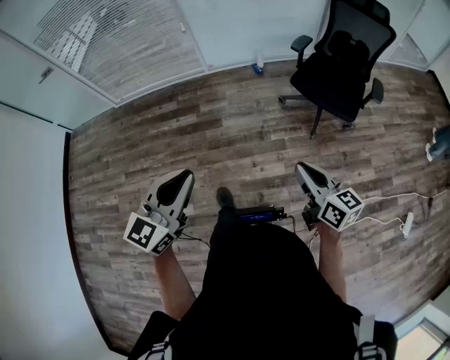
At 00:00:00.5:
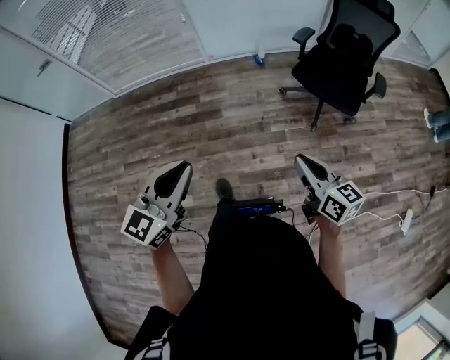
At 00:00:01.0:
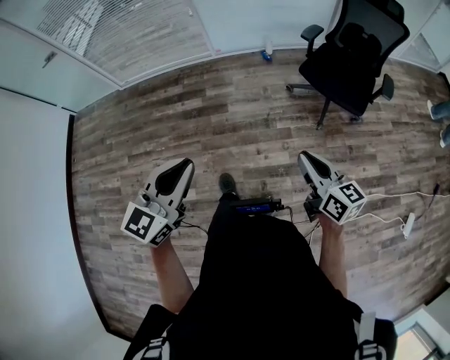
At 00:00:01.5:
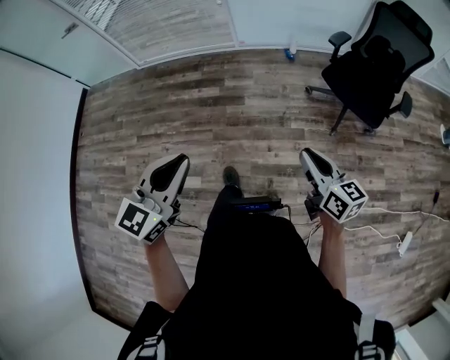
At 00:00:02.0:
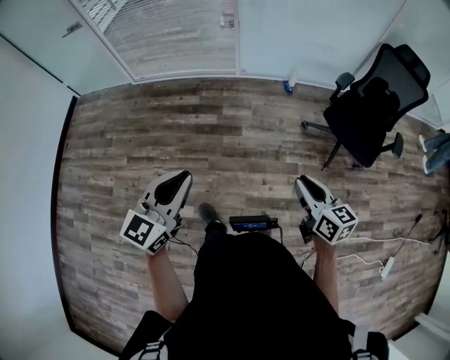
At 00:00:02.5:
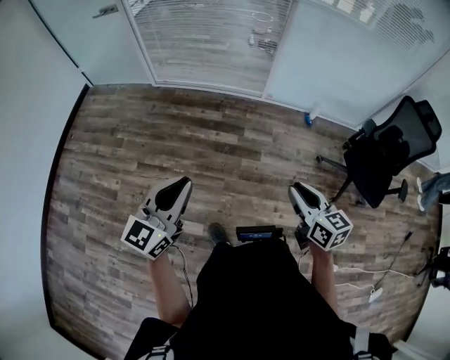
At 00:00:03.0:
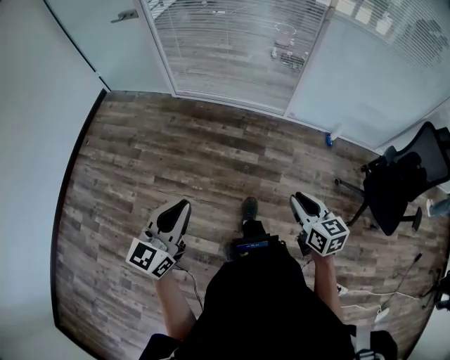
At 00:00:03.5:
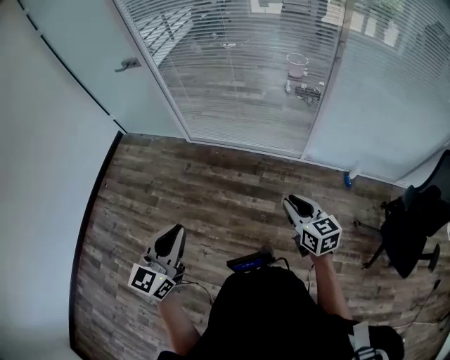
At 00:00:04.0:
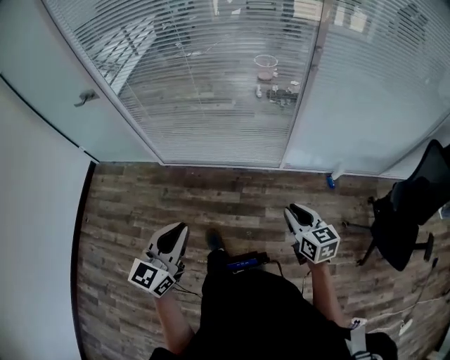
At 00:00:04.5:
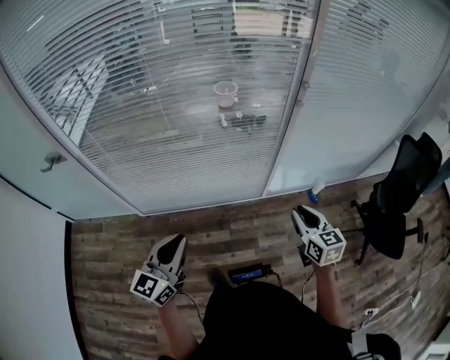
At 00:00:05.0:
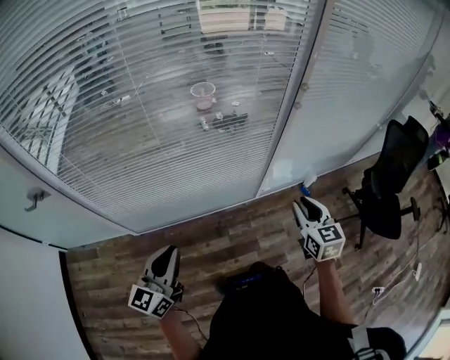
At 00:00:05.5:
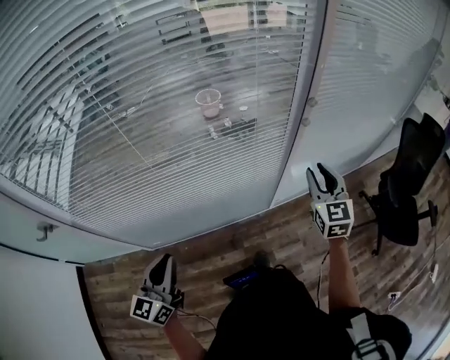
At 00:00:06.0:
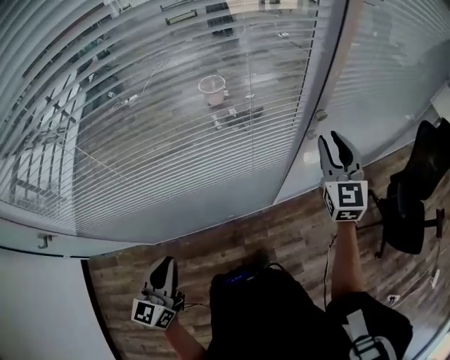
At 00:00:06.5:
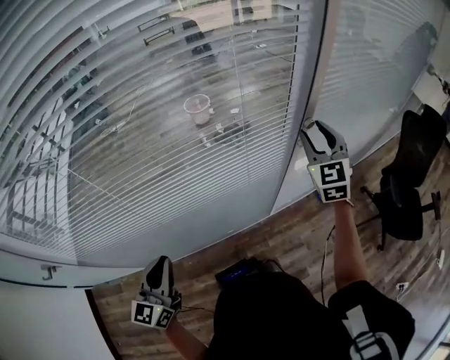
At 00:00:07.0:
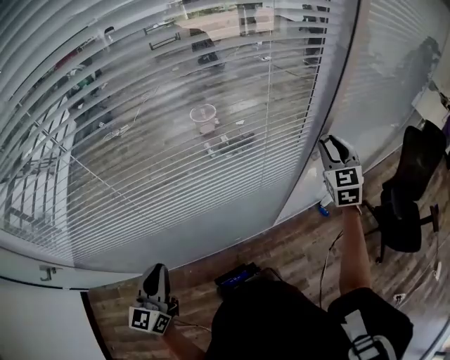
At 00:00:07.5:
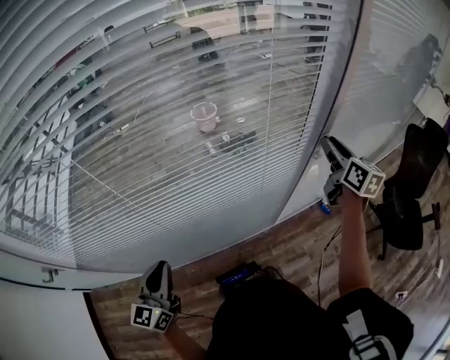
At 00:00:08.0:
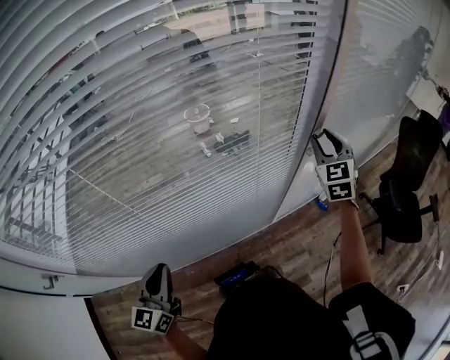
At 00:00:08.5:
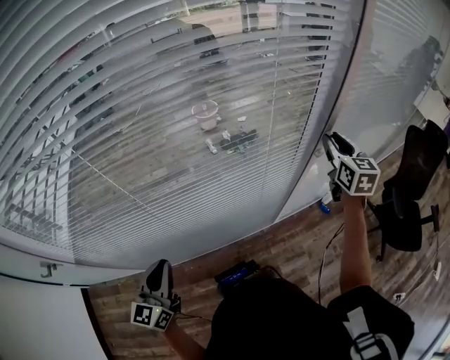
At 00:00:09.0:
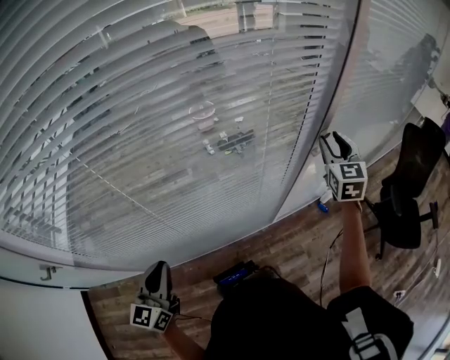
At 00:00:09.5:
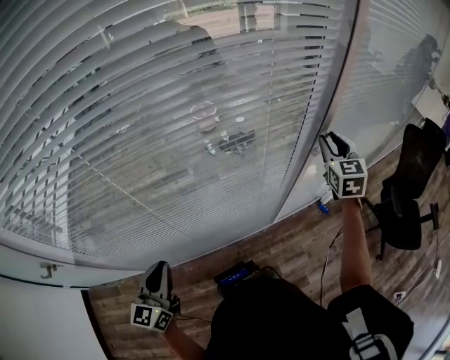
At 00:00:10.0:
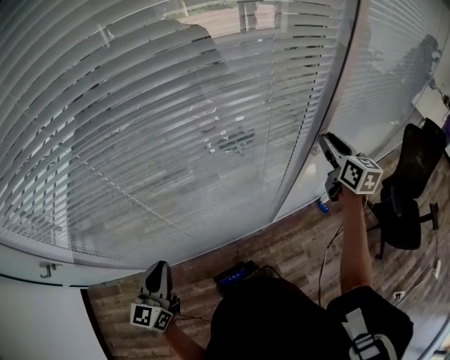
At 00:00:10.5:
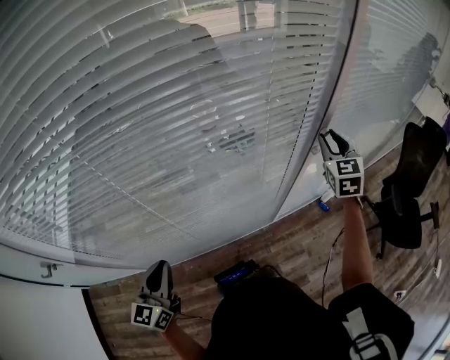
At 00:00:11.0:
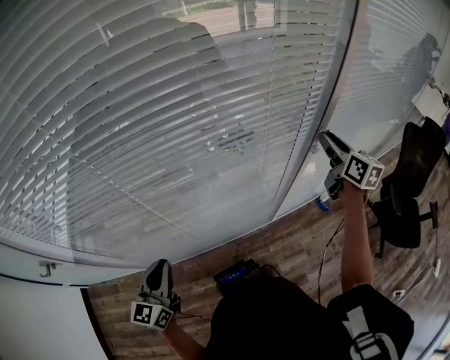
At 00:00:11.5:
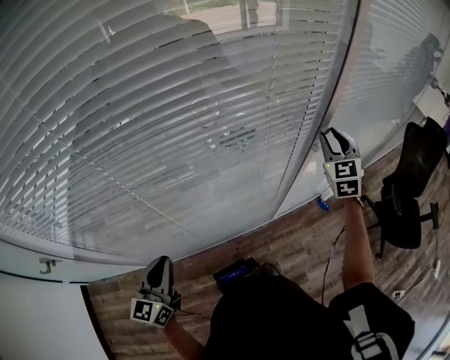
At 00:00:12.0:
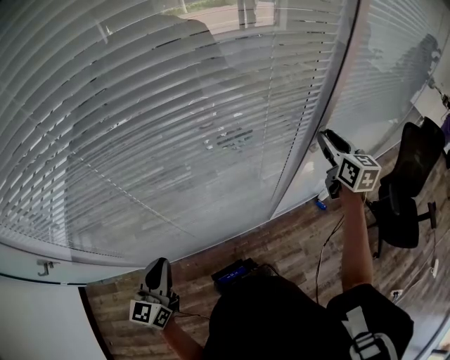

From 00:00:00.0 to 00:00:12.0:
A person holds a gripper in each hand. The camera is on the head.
From 00:00:00.0 to 00:00:02.0: The left gripper moves to the left, about 15 cm, while the right gripper goes about 15 cm to the left and forward.
From 00:00:02.0 to 00:00:04.0: Both grippers are carried forward and to the left, about 50 cm.
From 00:00:04.0 to 00:00:06.0: Both grippers are carried some 40 cm. The right gripper changes its angle by roughly 50 degrees.
From 00:00:06.0 to 00:00:08.0: The right gripper heads forward, covering some 5 cm; the left gripper travels to the left by approximately 10 cm.
From 00:00:08.0 to 00:00:10.0: The right gripper rolls clockwise, seen from behind, by about 40 degrees.

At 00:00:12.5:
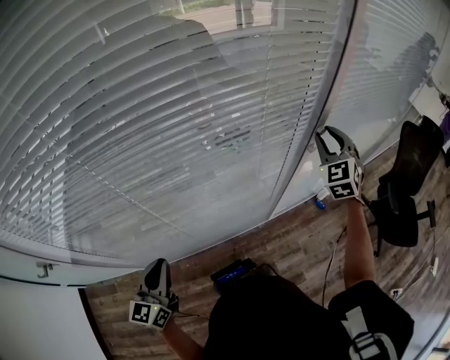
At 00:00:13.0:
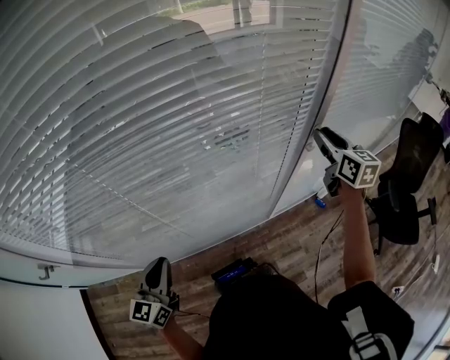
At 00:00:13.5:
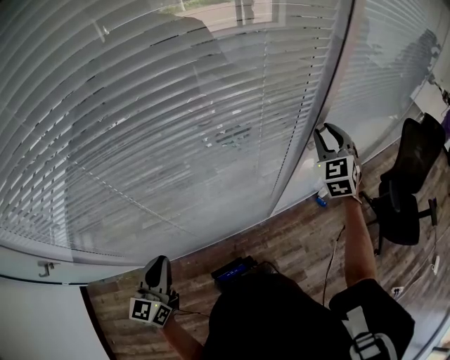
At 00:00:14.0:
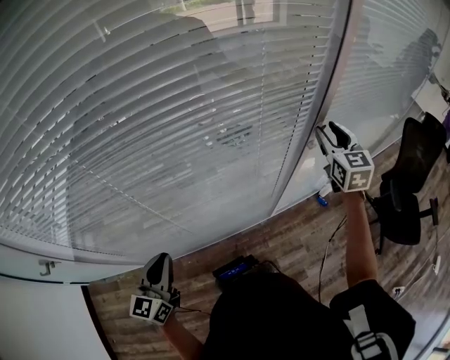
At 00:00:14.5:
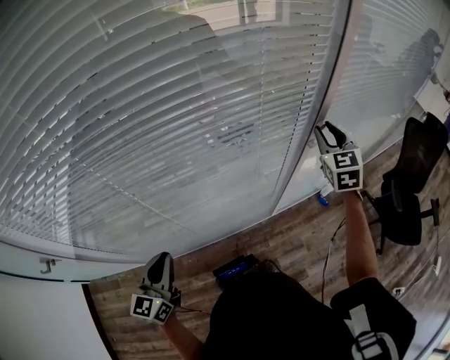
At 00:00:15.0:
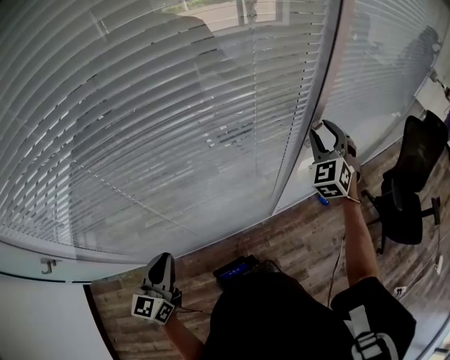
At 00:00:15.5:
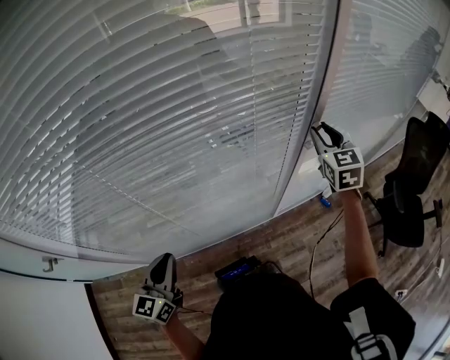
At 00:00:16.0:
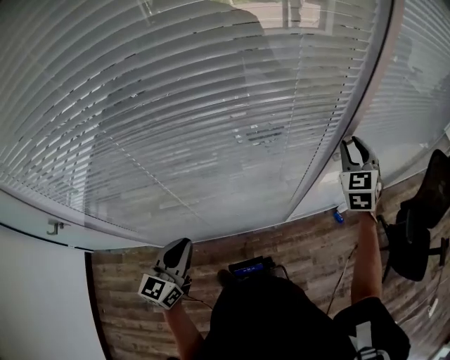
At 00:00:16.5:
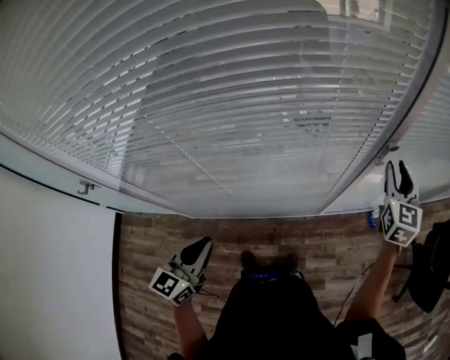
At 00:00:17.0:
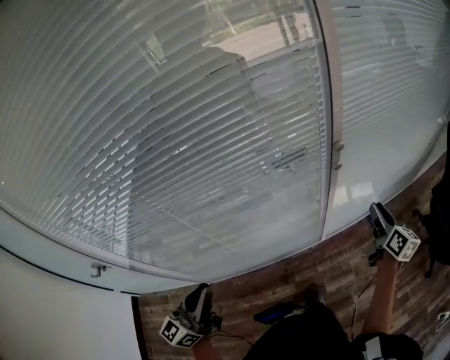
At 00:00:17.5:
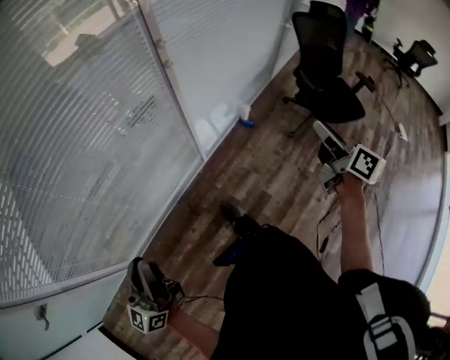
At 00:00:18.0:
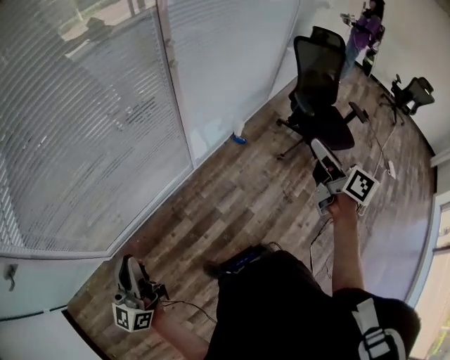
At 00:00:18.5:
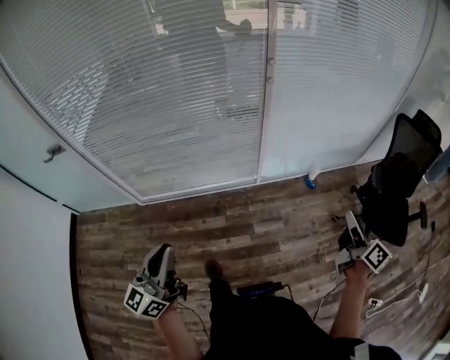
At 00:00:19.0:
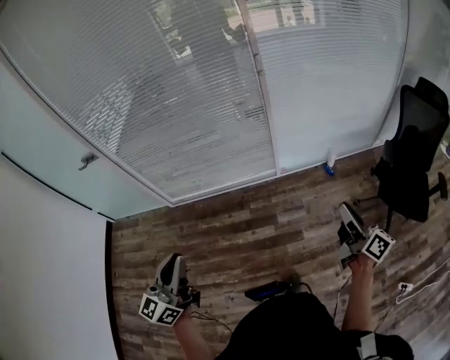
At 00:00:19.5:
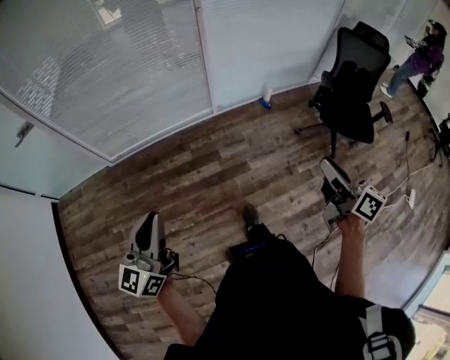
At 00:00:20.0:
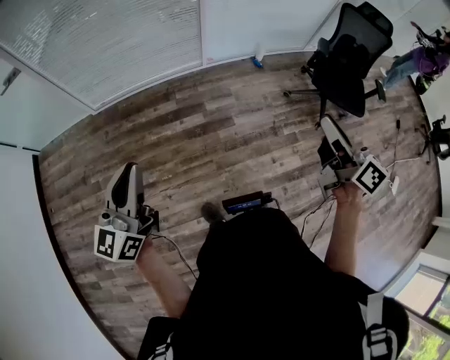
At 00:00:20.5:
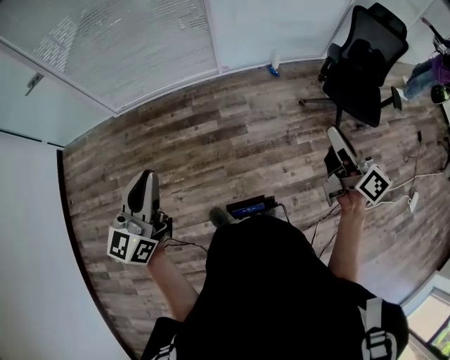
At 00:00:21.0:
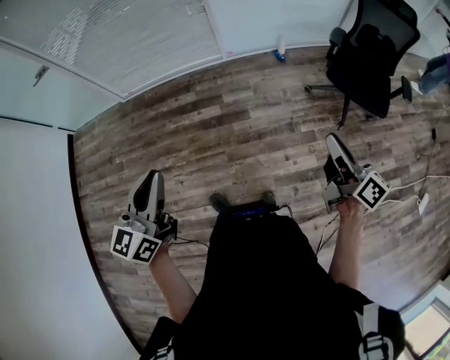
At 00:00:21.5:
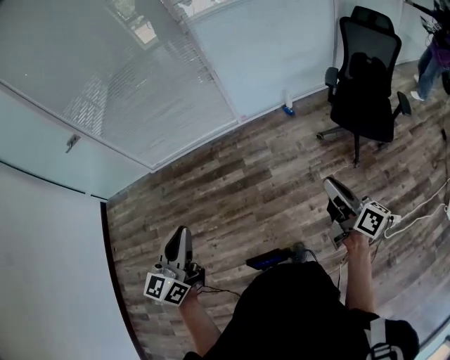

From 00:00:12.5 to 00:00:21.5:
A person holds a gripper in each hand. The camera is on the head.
From 00:00:14.5 to 00:00:17.0: The left gripper goes roughly 15 cm upward, to the right and backward, and swivels approximately 20 degrees. The right gripper travels downward, backward and to the right by roughly 20 cm, and rolls clockwise, seen from behind, by about 60 degrees.
From 00:00:17.0 to 00:00:19.5: The pair of grippers is taken about 70 cm.
From 00:00:19.5 to 00:00:21.5: The left gripper is displaced to the right and backward by approximately 20 cm; the right gripper is displaced to the right, backward and downward by approximately 15 cm.

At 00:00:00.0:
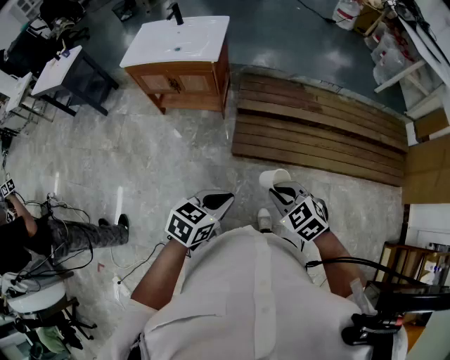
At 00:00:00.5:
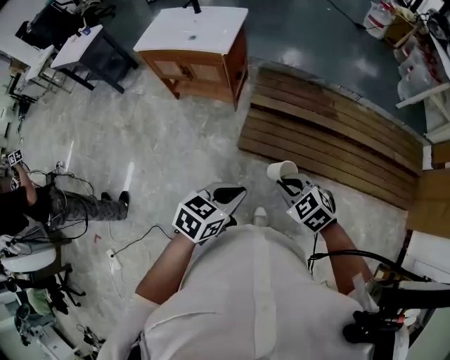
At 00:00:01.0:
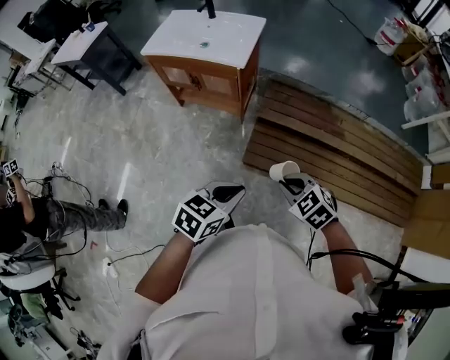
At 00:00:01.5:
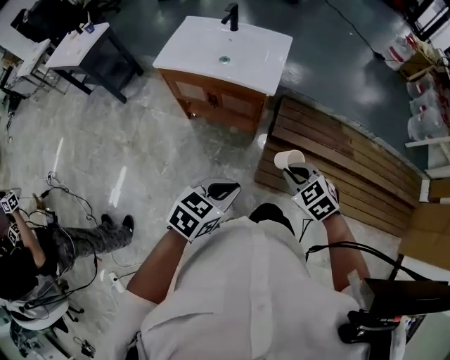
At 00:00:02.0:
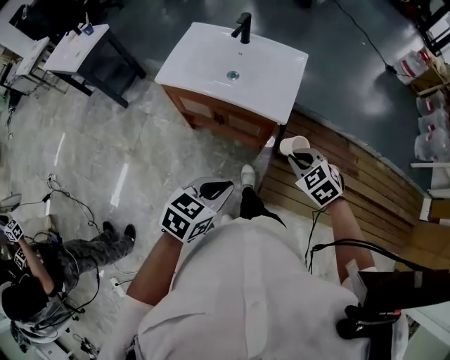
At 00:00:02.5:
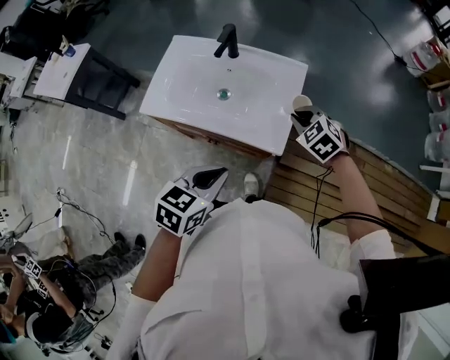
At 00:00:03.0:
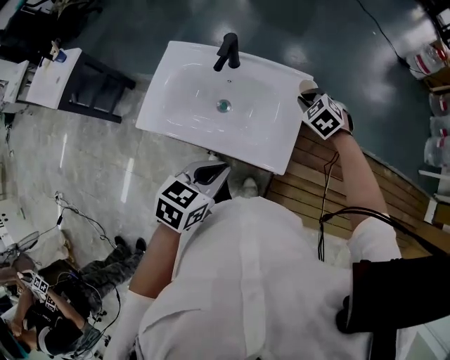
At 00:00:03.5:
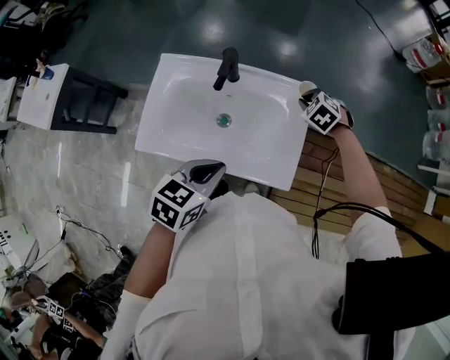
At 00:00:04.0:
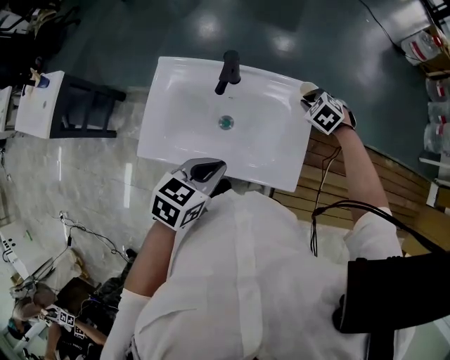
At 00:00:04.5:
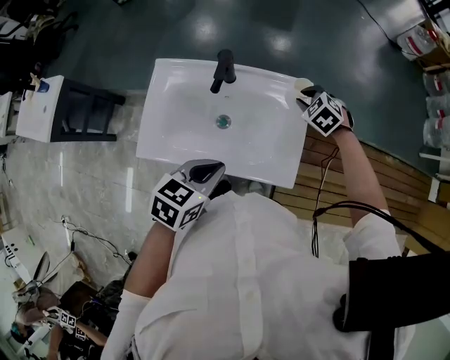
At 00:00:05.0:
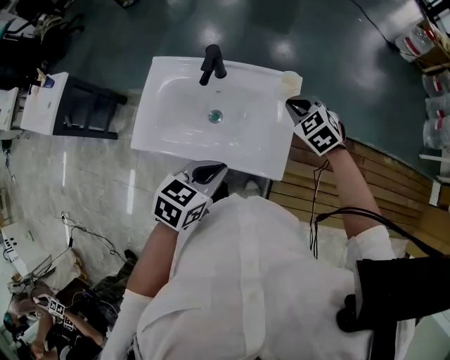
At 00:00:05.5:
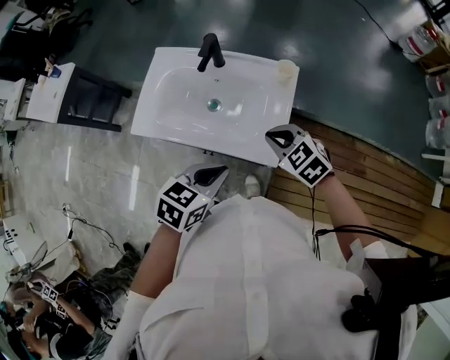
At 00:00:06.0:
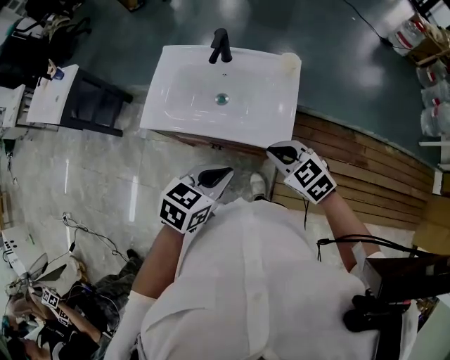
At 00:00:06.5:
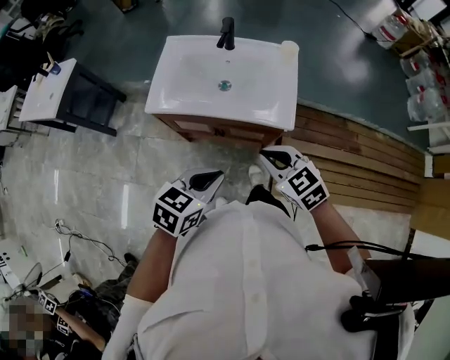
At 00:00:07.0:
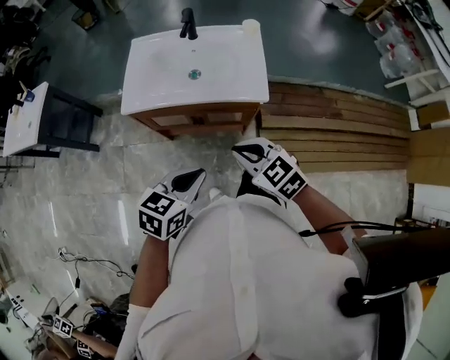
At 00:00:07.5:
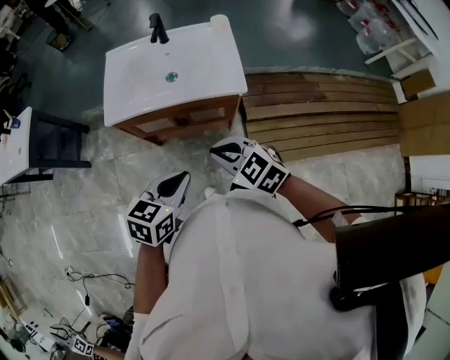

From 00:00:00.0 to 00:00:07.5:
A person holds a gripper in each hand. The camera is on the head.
From 00:00:00.0 to 00:00:02.0: Both grippers are carried forward and to the left, approximately 50 cm.
From 00:00:02.0 to 00:00:04.0: The two grippers go roughly 40 cm forward.
From 00:00:04.0 to 00:00:05.5: The right gripper heads backward and upward, covering roughly 25 cm, and turns by some 30 degrees. Meanwhile the left gripper goes approximately 15 cm backward and to the right.
From 00:00:05.5 to 00:00:07.5: The grippers both shift backward and to the left by about 30 cm.
